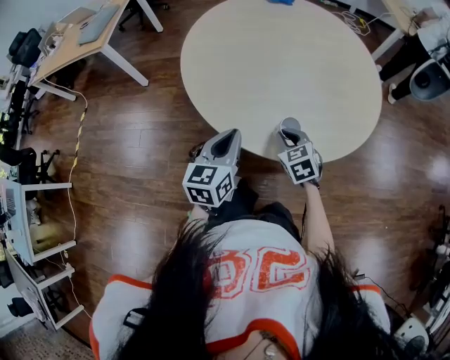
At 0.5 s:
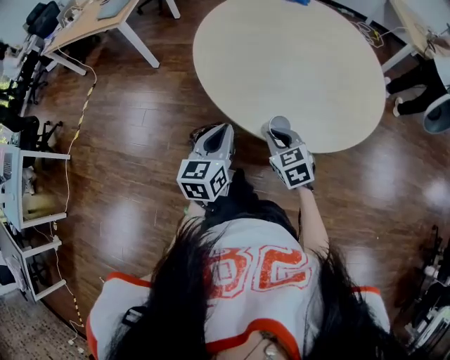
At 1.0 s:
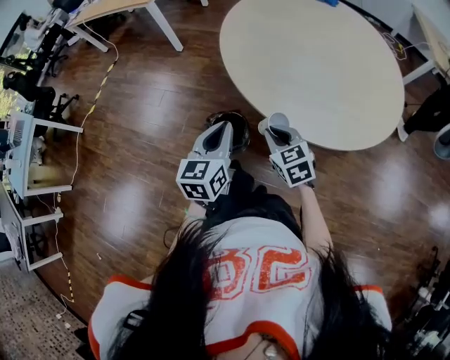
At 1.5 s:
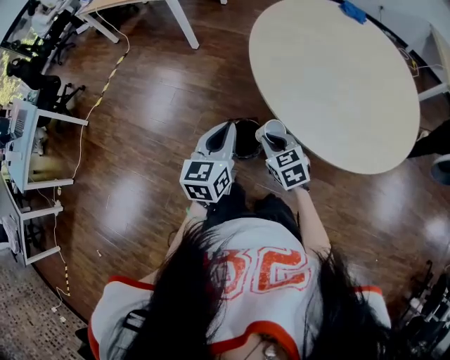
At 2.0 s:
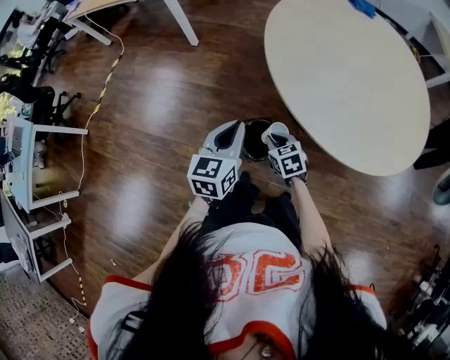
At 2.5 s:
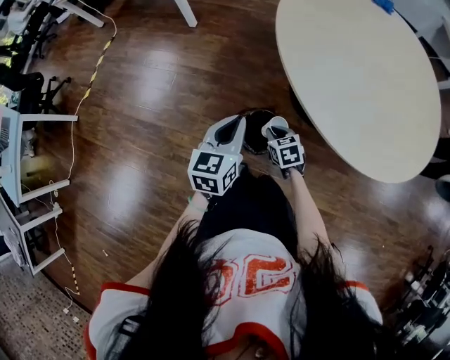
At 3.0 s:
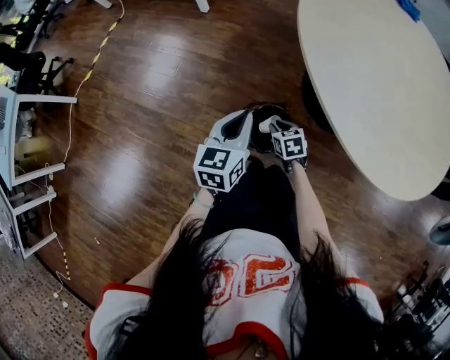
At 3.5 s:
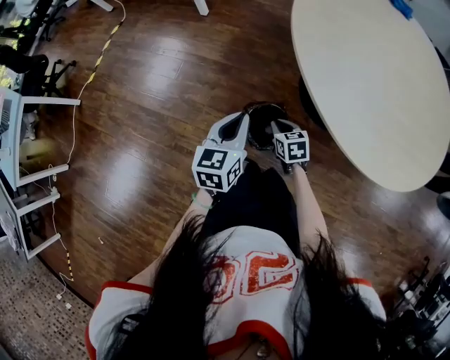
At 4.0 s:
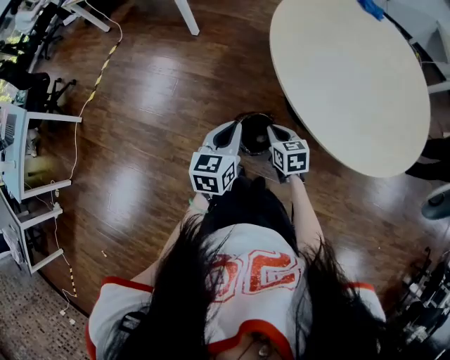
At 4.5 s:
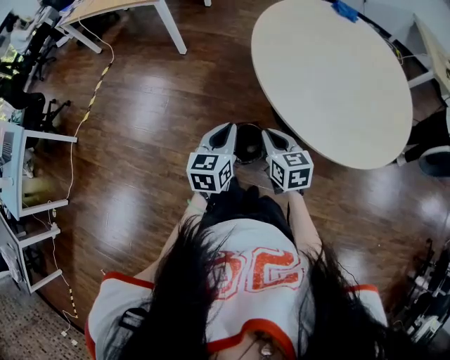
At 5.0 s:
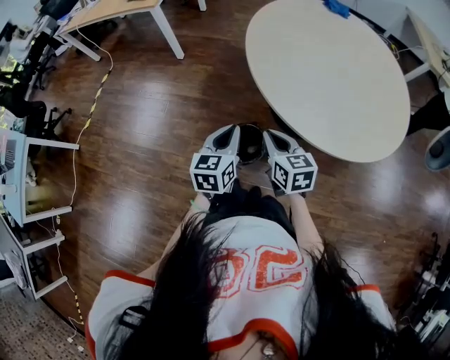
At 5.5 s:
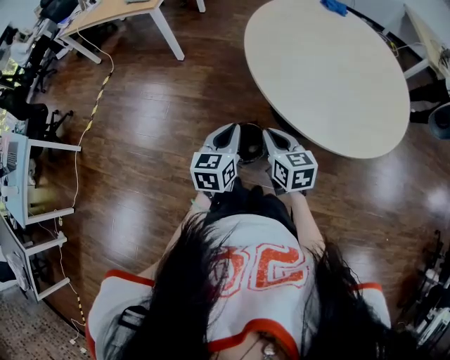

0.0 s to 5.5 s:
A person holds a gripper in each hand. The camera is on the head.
0.0 to 2.0 s: The left gripper ends up some 20 cm from where it was. Meanwhile the right gripper ends up some 25 cm from where it was.
2.0 to 3.5 s: Both grippers move downward, some 10 cm.
3.5 to 5.5 s: The right gripper shifts roughly 25 cm upward, and rotates roughly 20 degrees. The left gripper shifts roughly 10 cm upward.

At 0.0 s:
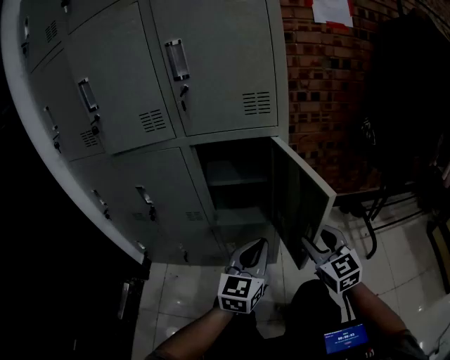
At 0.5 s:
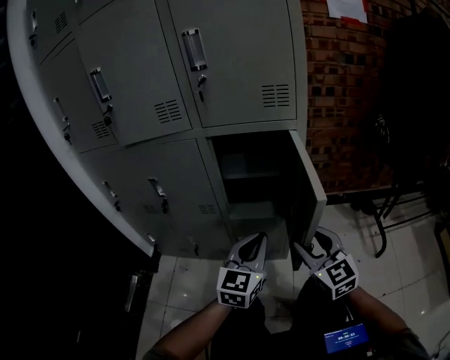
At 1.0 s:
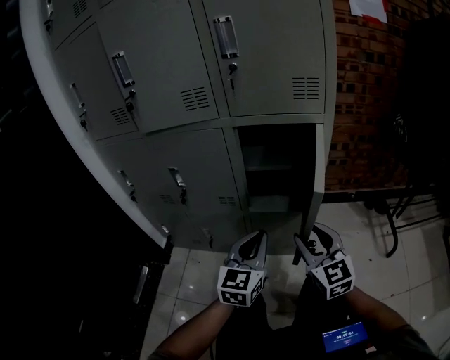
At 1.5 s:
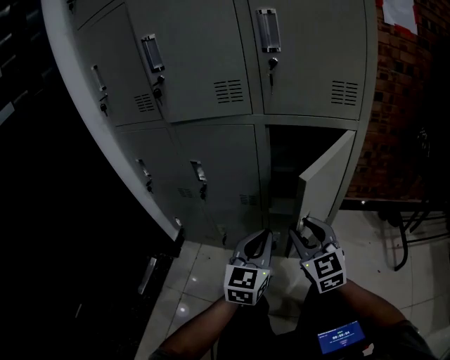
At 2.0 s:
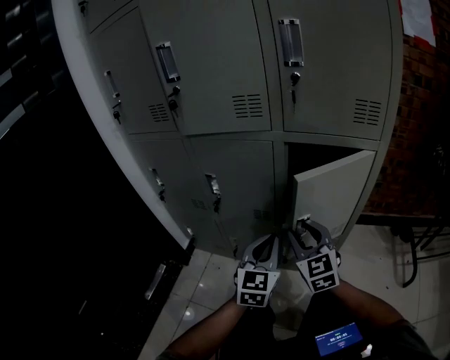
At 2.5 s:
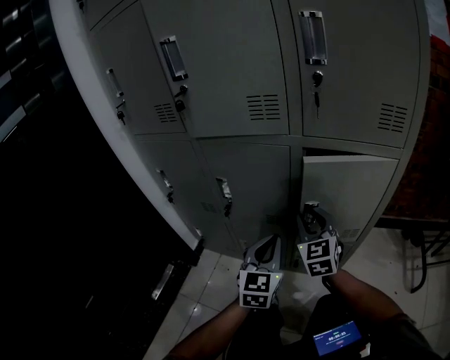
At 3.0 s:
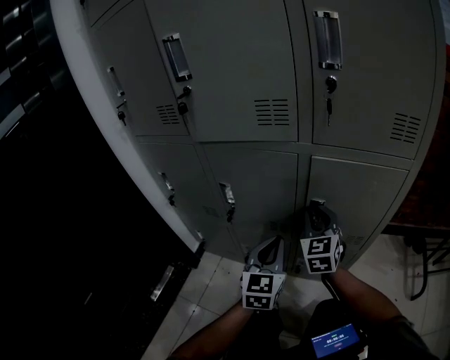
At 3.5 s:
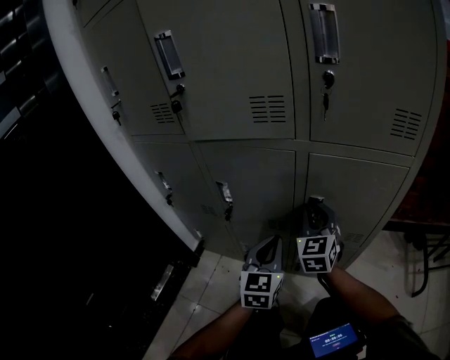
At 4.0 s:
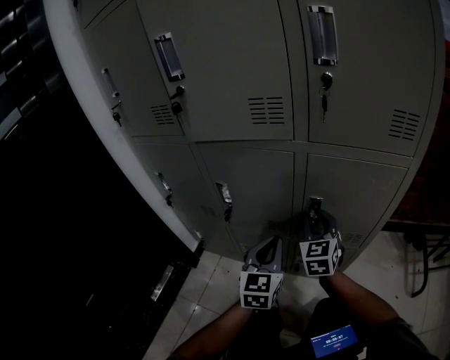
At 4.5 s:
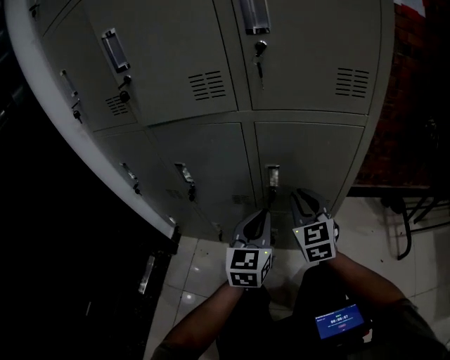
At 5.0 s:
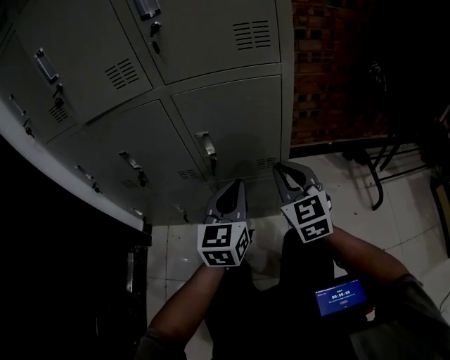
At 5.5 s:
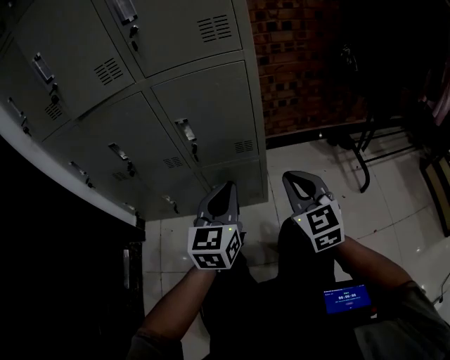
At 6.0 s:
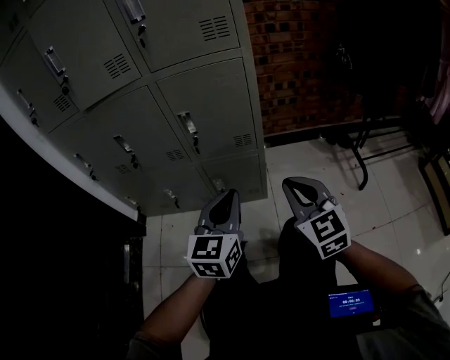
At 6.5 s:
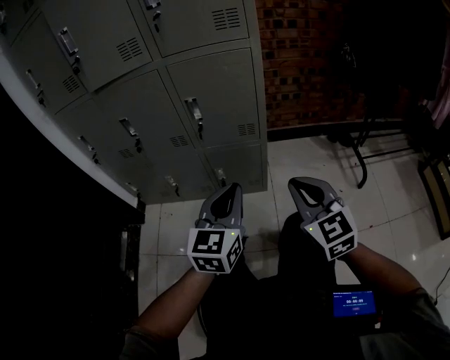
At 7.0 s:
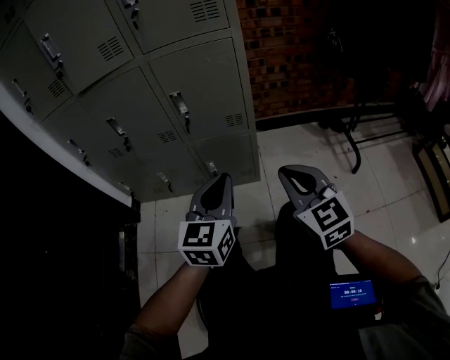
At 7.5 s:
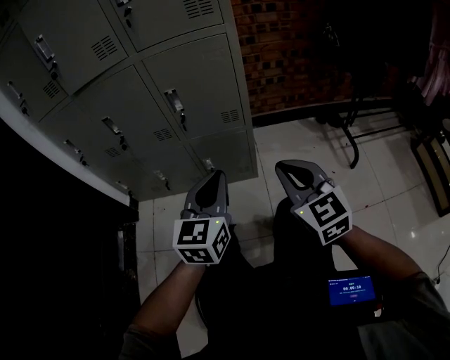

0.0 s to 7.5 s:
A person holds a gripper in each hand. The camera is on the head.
0.0 to 2.0 s: The two grippers go some 25 cm to the left and forward. The left gripper swivels roughly 20 degrees.
2.0 to 4.0 s: The right gripper goes some 15 cm forward, while the left gripper travels forward by some 5 cm.
4.0 to 5.5 s: Both grippers move to the right and backward, some 30 cm.
5.5 to 7.5 s: The two grippers go some 10 cm backward.

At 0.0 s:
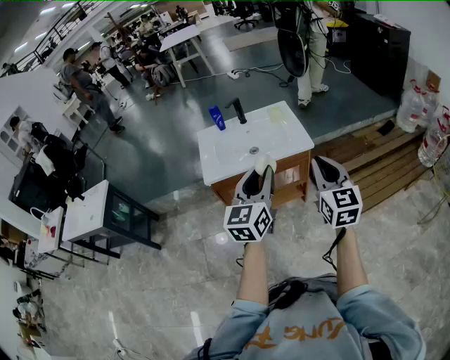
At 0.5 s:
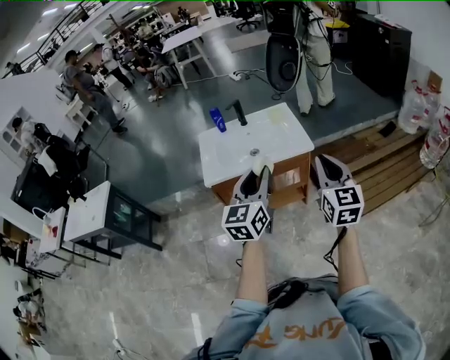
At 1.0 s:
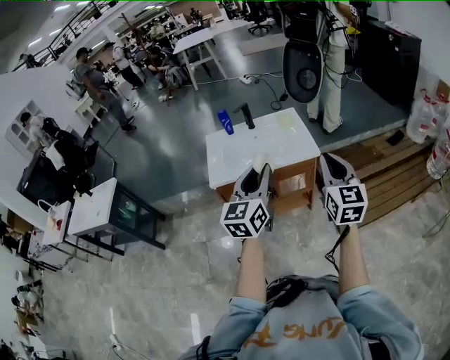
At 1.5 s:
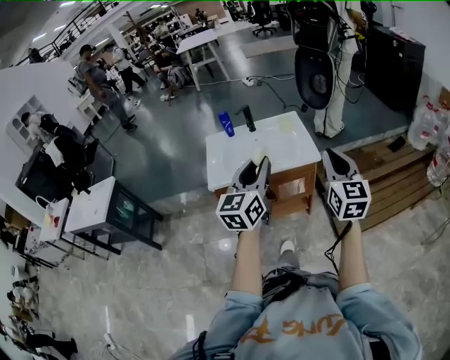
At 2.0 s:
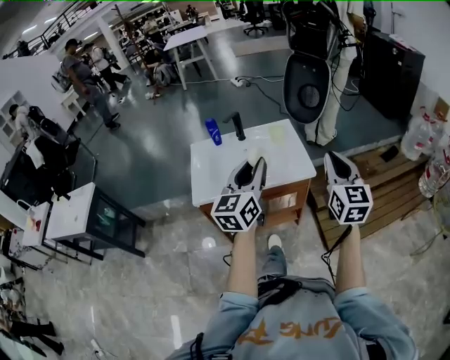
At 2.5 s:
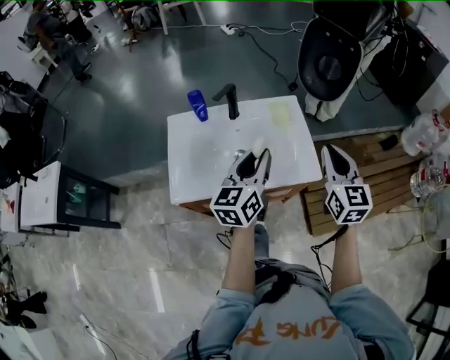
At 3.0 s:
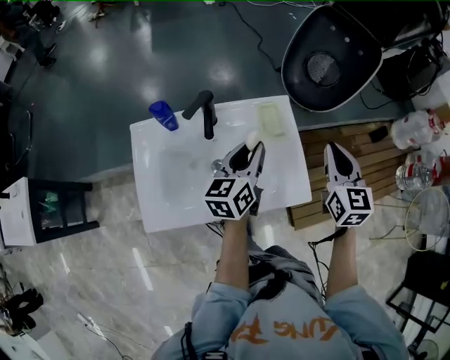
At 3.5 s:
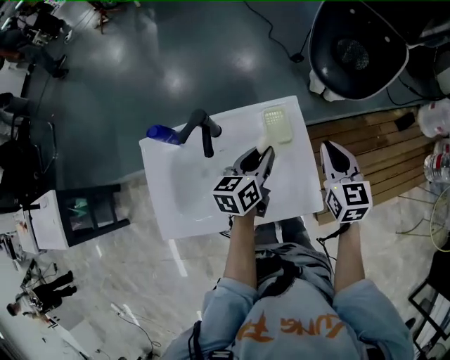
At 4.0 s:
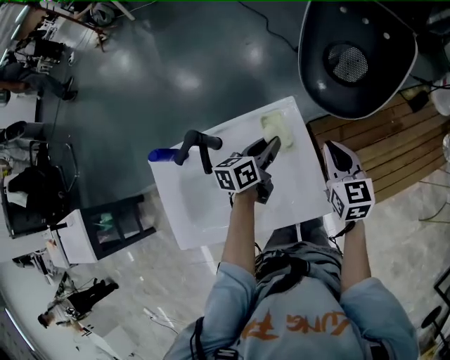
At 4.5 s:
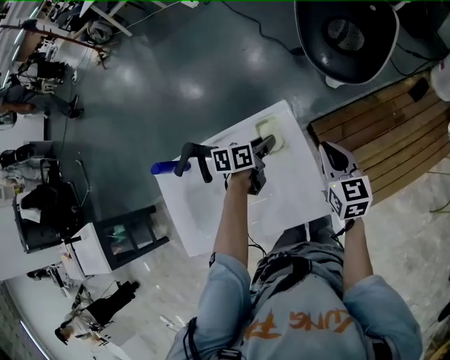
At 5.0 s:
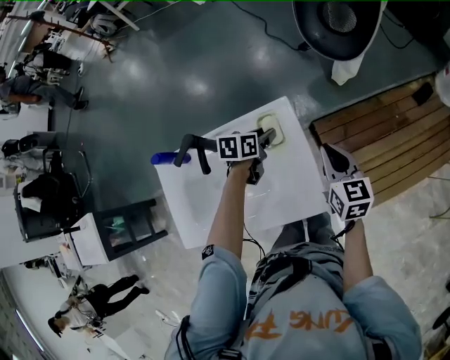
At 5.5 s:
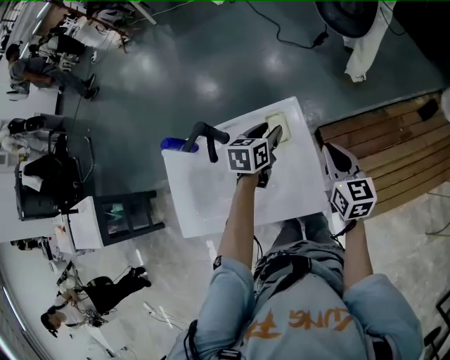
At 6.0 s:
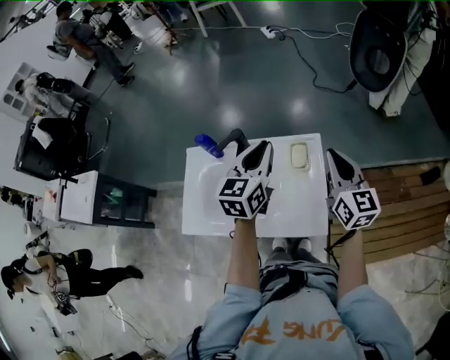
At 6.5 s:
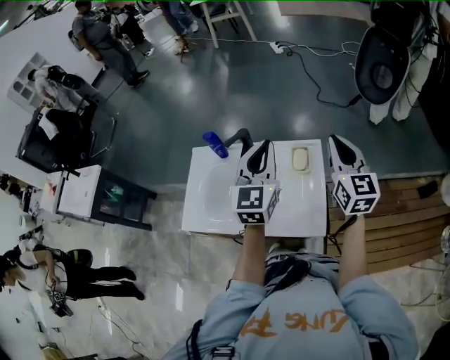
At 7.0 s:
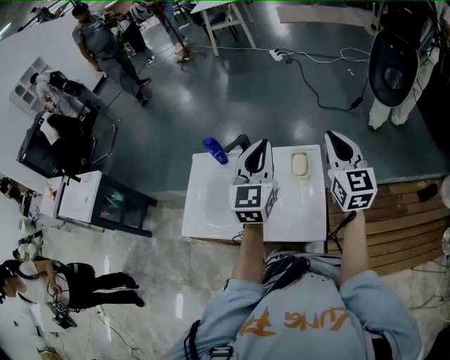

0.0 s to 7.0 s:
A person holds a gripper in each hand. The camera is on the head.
0.0 to 2.0 s: The grippers both shift forward by about 15 cm.
2.0 to 3.5 s: The two grippers go some 35 cm forward and downward. The right gripper changes its angle by approximately 30 degrees; the left gripper changes its angle by roughly 40 degrees.
3.5 to 5.0 s: The right gripper moves downward, some 5 cm, while the left gripper heads downward and forward, covering some 15 cm, and turns by roughly 30 degrees.
5.0 to 7.0 s: The two grippers go roughly 25 cm upward. The right gripper rotates approximately 30 degrees, while the left gripper points its fingers about 50 degrees further upward, and closes.

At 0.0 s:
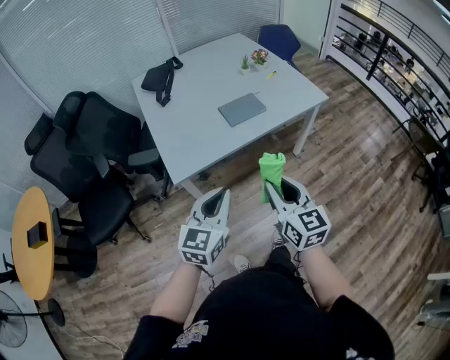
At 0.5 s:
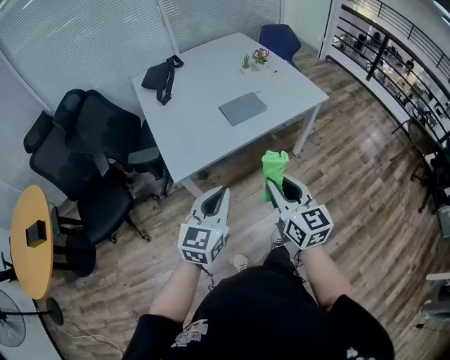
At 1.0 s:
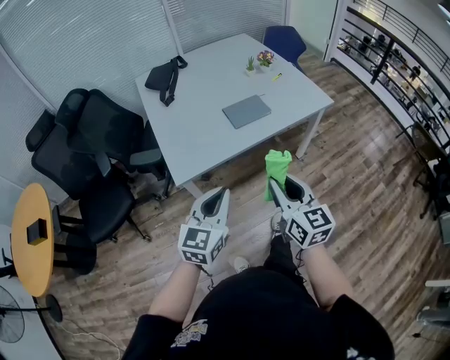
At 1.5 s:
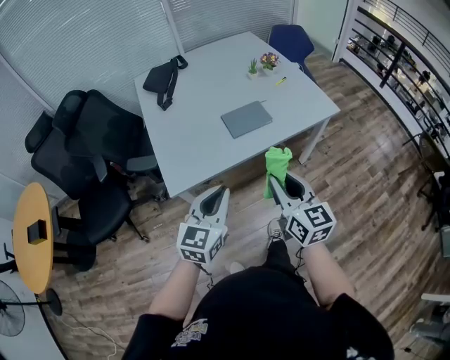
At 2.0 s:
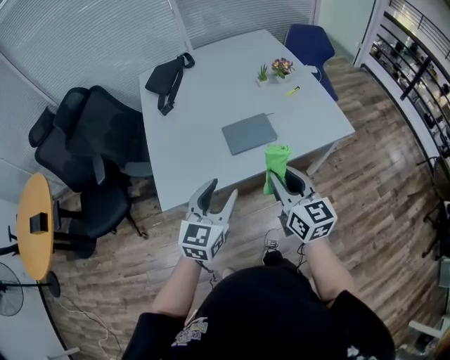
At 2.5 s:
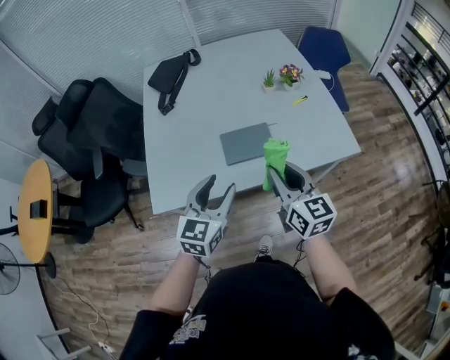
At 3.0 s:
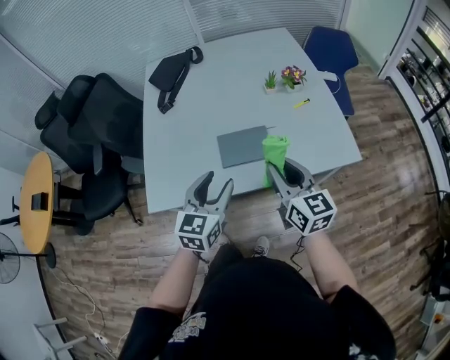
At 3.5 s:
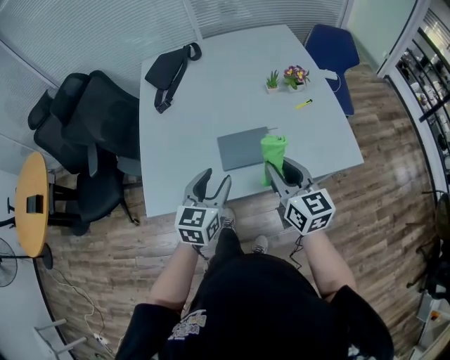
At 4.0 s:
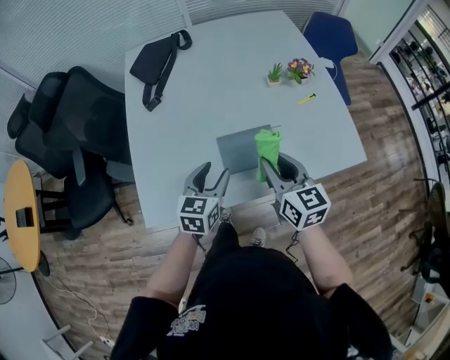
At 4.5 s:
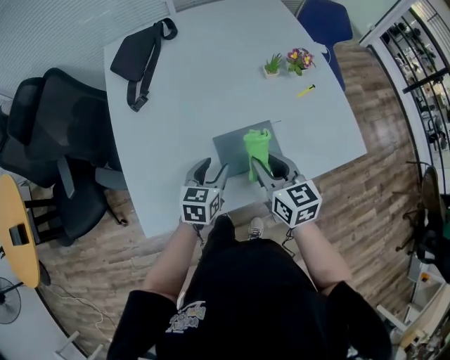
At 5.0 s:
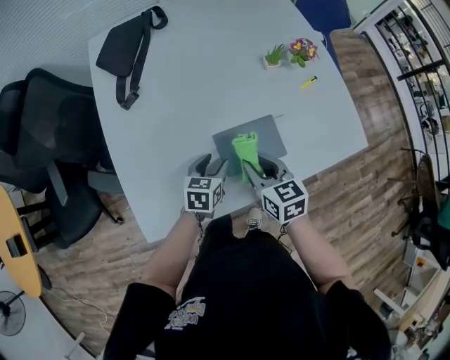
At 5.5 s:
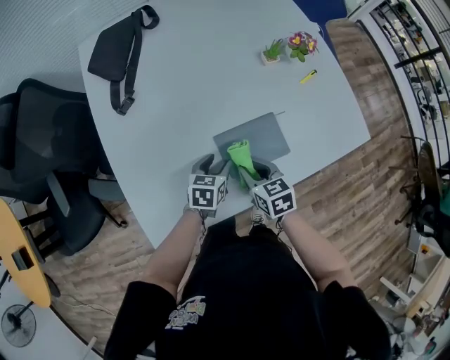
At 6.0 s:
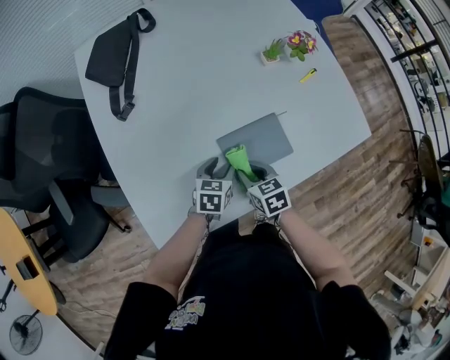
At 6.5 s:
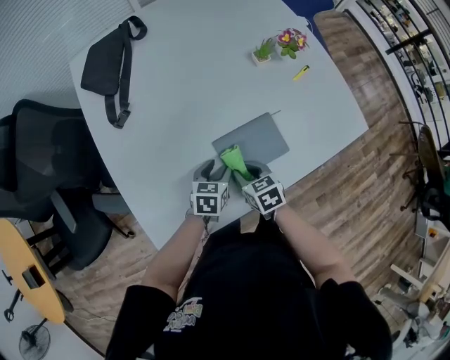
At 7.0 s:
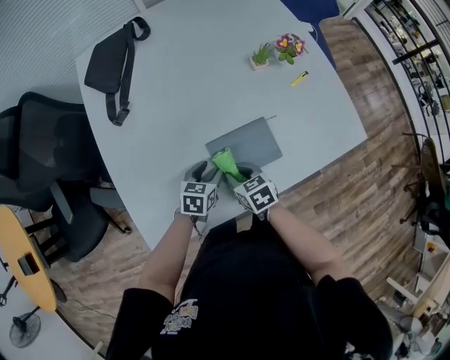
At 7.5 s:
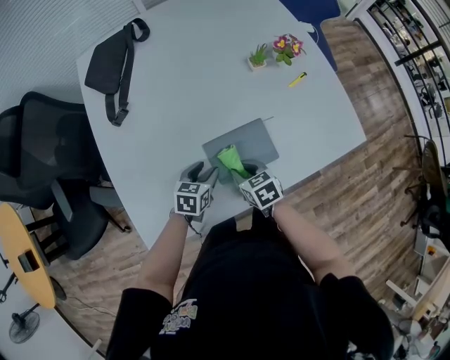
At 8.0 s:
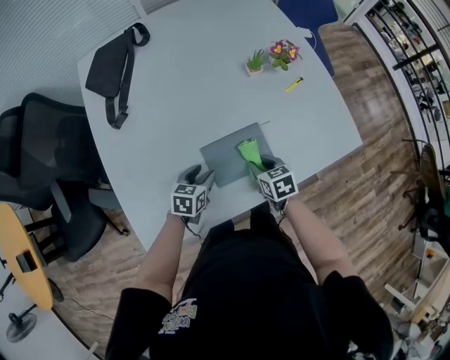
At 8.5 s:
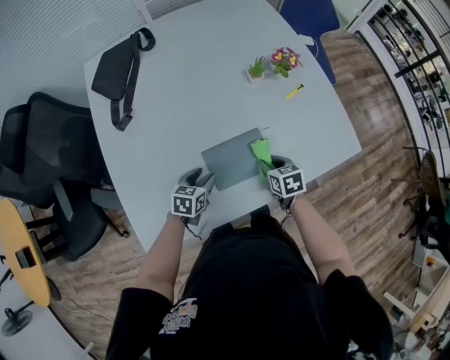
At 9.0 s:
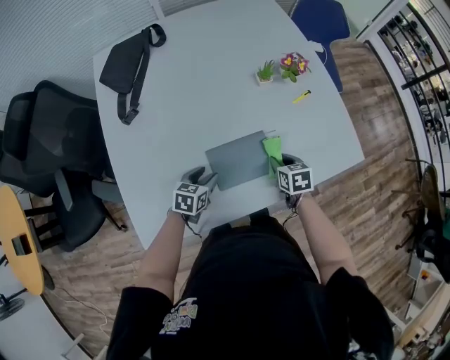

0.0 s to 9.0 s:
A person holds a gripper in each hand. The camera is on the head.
0.0 to 2.0 s: Both grippers travel together forward, some 20 cm. The left gripper opens its fingers.
2.0 to 4.5 s: Both grippers travel together forward and downward, roughly 30 cm. The left gripper turns by approximately 30 degrees.
4.5 to 7.0 s: The right gripper shifts roughly 20 cm downward, and turns by roughly 30 degrees, while the left gripper travels downward by about 10 cm.
7.0 to 9.0 s: The right gripper goes roughly 20 cm to the right and forward.
